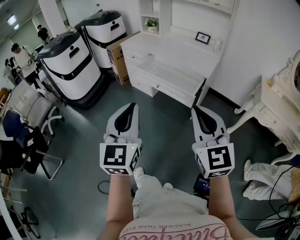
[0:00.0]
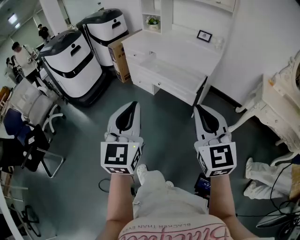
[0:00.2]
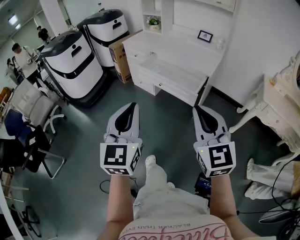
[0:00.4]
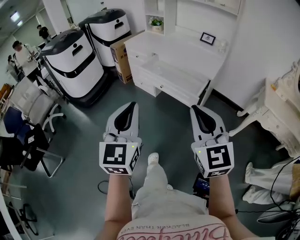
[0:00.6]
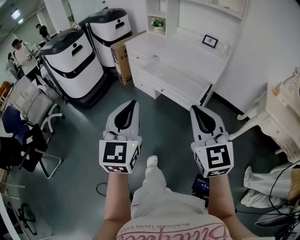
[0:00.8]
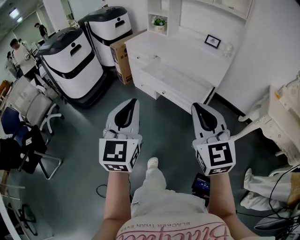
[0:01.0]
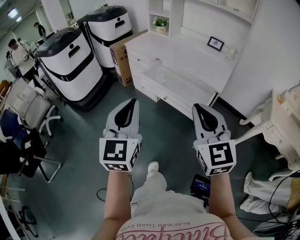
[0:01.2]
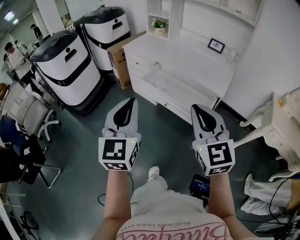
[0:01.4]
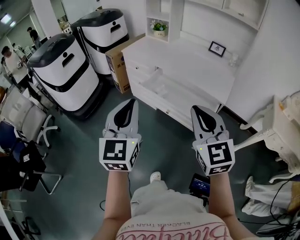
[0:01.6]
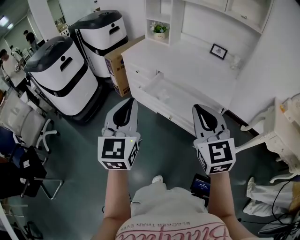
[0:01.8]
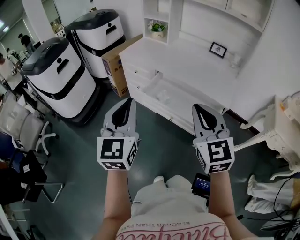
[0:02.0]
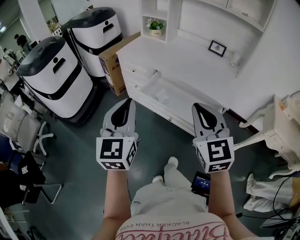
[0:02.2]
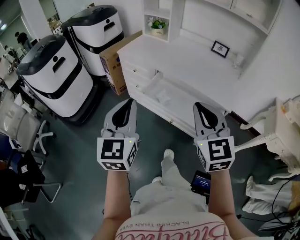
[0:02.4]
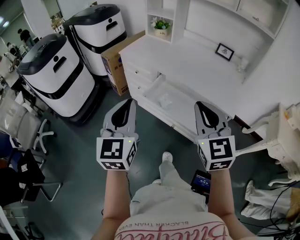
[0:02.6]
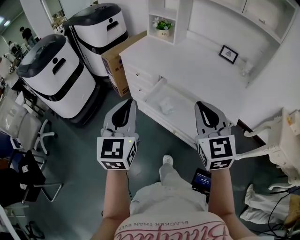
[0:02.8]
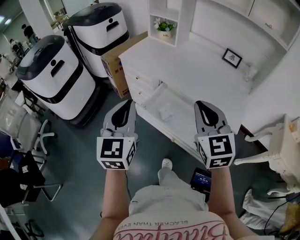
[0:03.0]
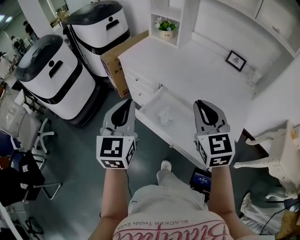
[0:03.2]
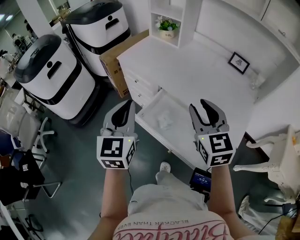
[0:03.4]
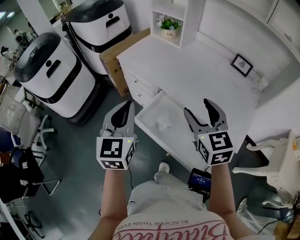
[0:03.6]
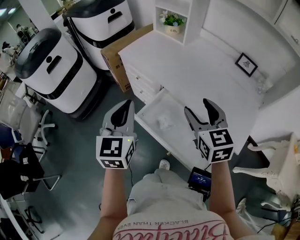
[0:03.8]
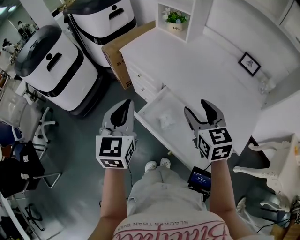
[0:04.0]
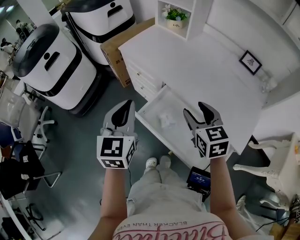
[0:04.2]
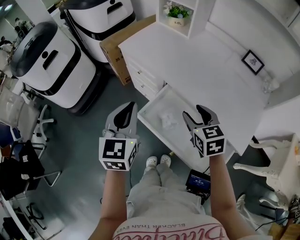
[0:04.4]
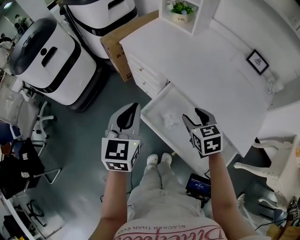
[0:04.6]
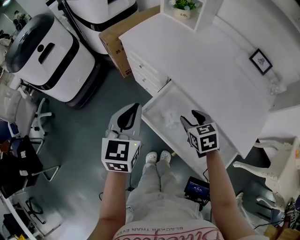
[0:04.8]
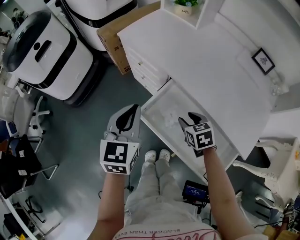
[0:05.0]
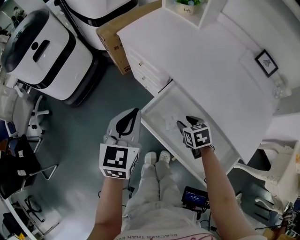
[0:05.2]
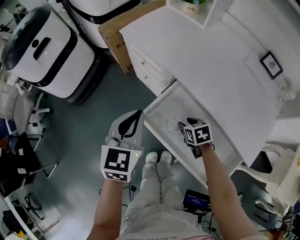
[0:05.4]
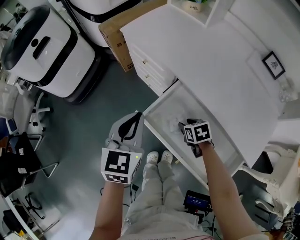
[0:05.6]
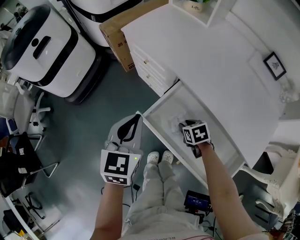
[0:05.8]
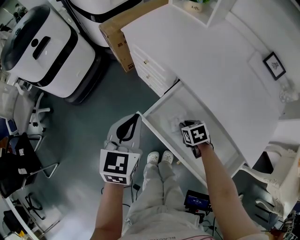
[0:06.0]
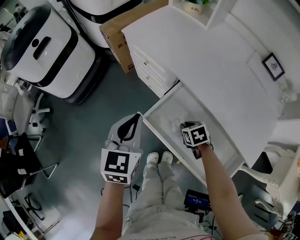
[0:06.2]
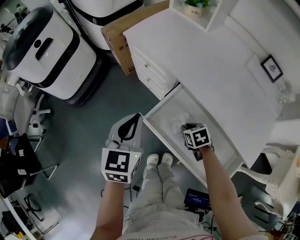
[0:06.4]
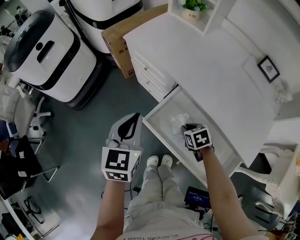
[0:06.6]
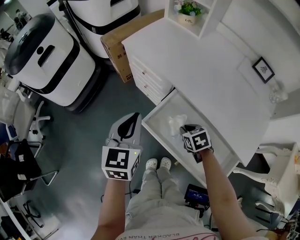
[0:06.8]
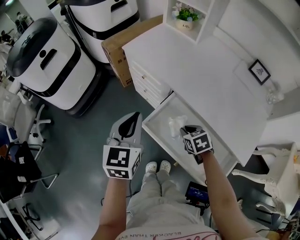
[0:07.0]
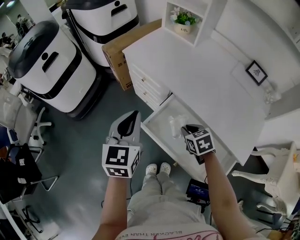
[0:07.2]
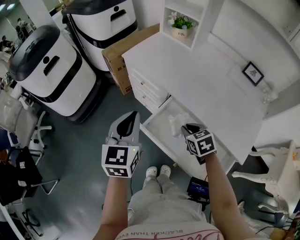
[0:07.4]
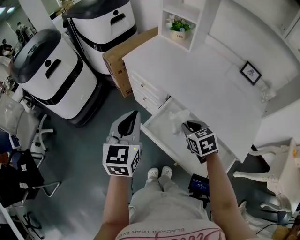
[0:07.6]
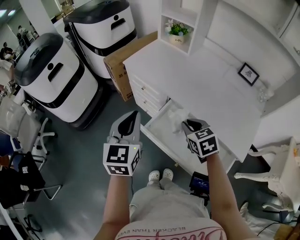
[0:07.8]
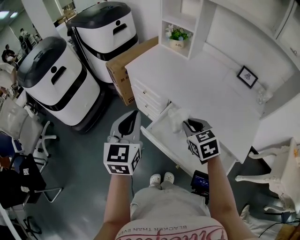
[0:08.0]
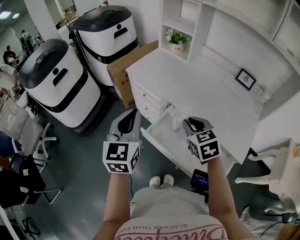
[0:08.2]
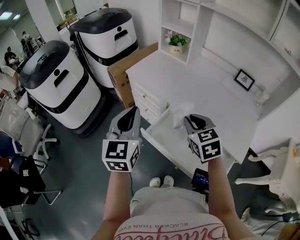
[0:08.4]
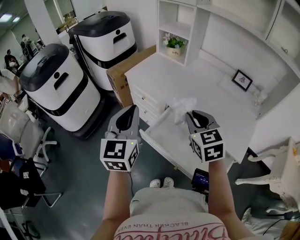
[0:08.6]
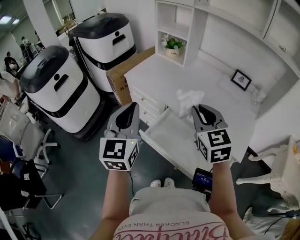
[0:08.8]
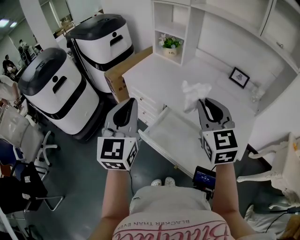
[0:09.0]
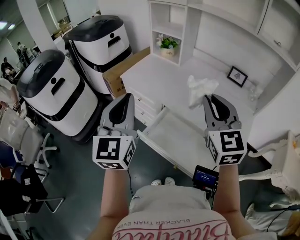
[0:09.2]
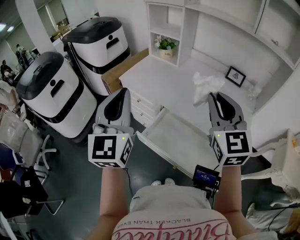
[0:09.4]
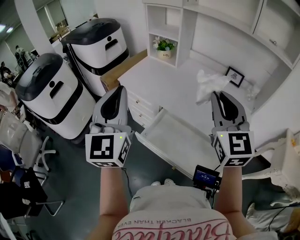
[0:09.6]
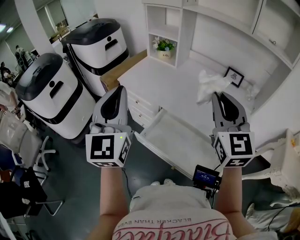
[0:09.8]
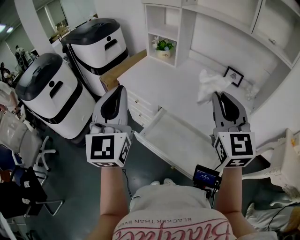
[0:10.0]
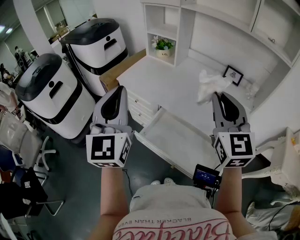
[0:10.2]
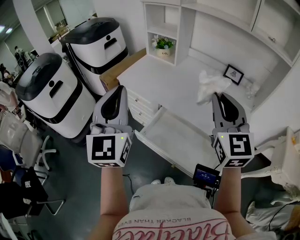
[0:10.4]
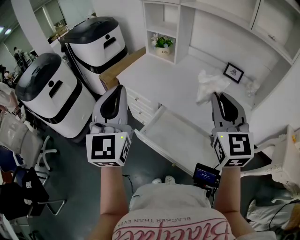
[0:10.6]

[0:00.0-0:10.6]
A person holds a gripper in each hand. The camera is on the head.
0:00.0 to 0:01.6: The two grippers go approximately 25 cm forward.
0:01.6 to 0:03.0: The two grippers go about 25 cm forward.
0:03.0 to 0:04.6: The left gripper travels forward and downward by approximately 15 cm. The right gripper travels downward and forward by about 25 cm, rotates approximately 30 degrees, and opens its fingers.
0:04.6 to 0:06.0: The left gripper heads downward, covering approximately 10 cm; the right gripper is displaced downward by roughly 20 cm, changes its angle by about 30 degrees, and closes its fingers.
0:06.0 to 0:07.6: The right gripper travels upward by approximately 20 cm, and turns by roughly 20 degrees. Meanwhile the left gripper shifts some 10 cm upward.
0:07.6 to 0:09.0: The left gripper heads upward, covering about 15 cm; the right gripper goes approximately 25 cm upward, and points its fingers roughly 40 degrees further upward.
0:09.0 to 0:10.6: The left gripper goes roughly 5 cm upward, while the right gripper shifts about 10 cm to the right and upward.

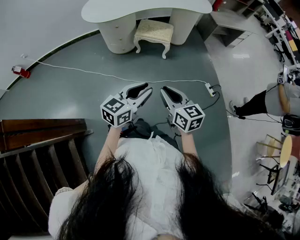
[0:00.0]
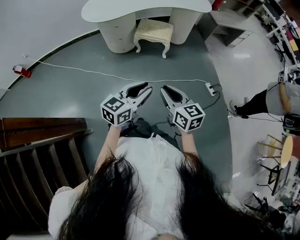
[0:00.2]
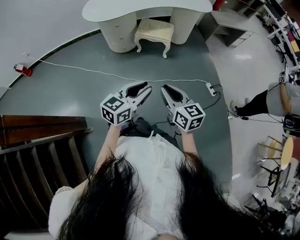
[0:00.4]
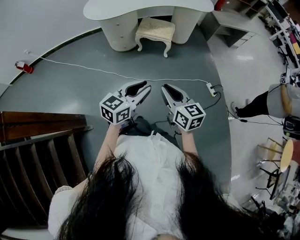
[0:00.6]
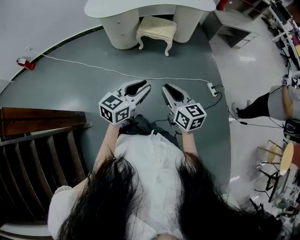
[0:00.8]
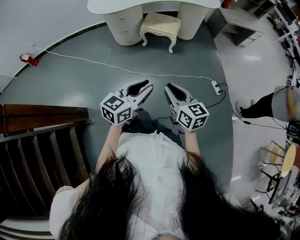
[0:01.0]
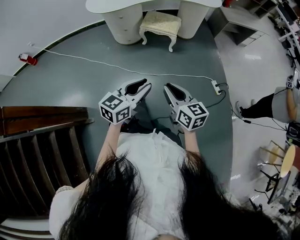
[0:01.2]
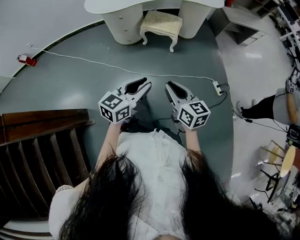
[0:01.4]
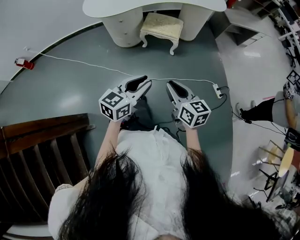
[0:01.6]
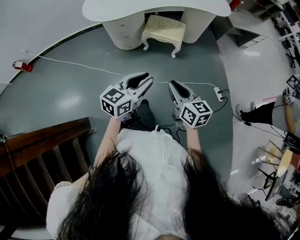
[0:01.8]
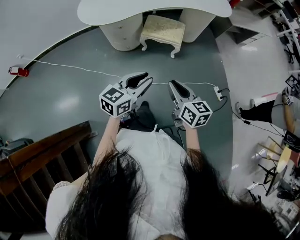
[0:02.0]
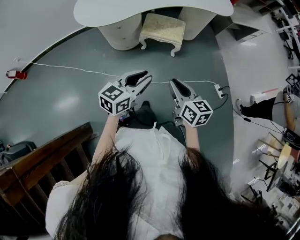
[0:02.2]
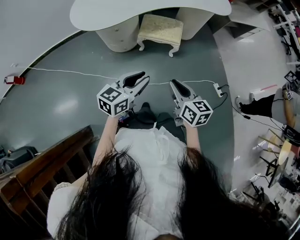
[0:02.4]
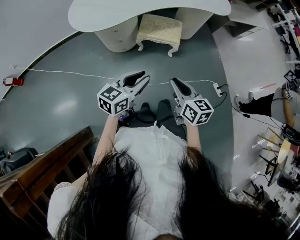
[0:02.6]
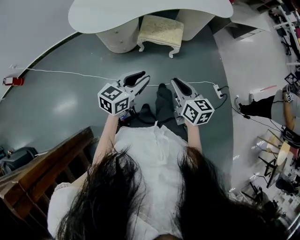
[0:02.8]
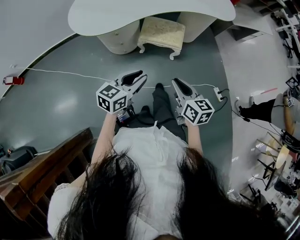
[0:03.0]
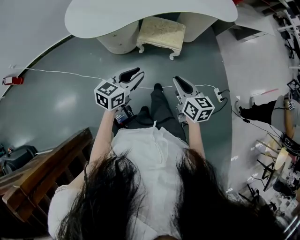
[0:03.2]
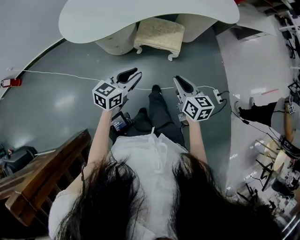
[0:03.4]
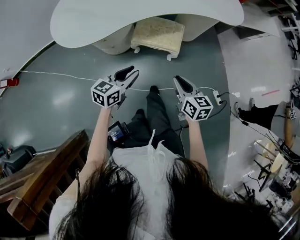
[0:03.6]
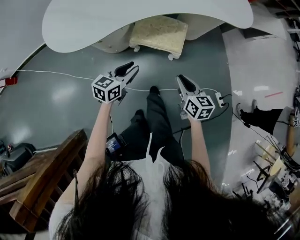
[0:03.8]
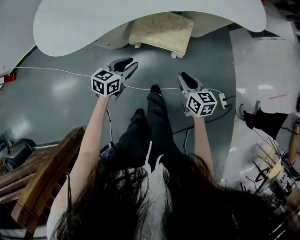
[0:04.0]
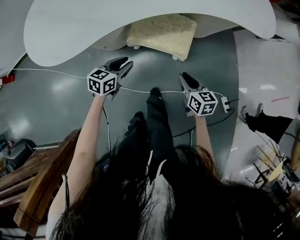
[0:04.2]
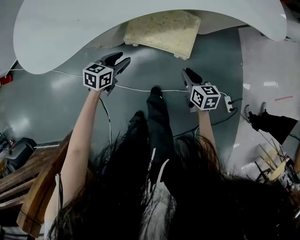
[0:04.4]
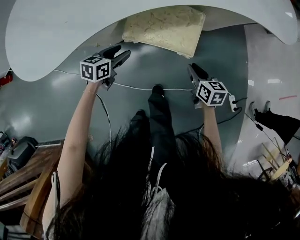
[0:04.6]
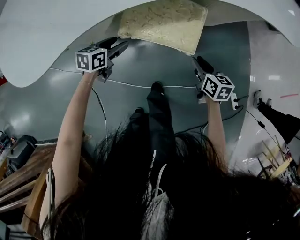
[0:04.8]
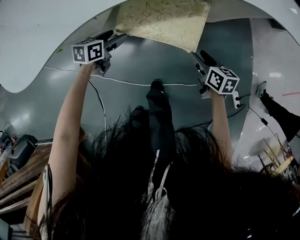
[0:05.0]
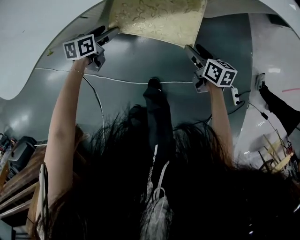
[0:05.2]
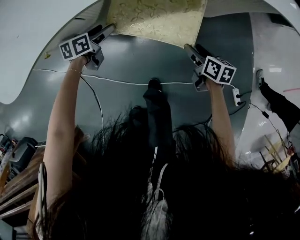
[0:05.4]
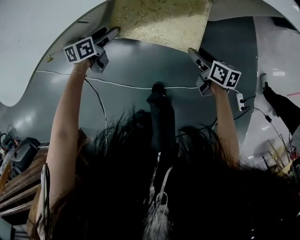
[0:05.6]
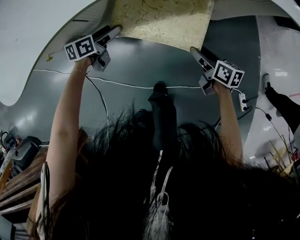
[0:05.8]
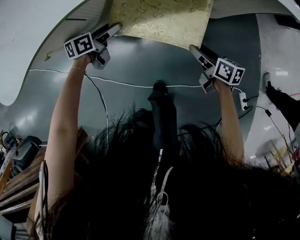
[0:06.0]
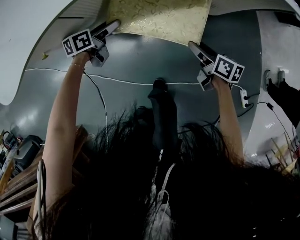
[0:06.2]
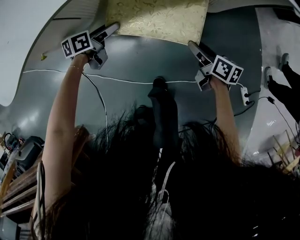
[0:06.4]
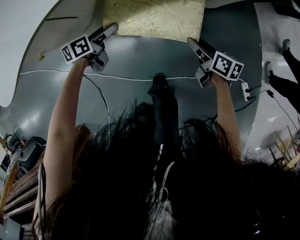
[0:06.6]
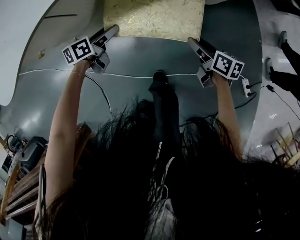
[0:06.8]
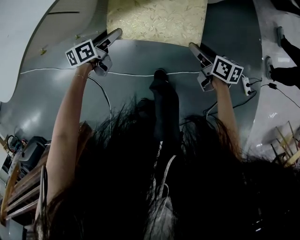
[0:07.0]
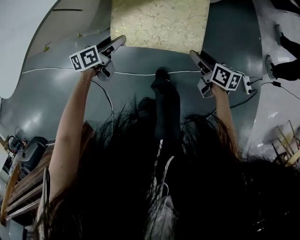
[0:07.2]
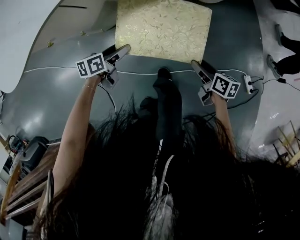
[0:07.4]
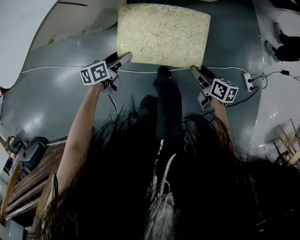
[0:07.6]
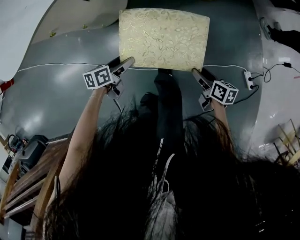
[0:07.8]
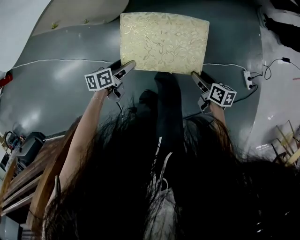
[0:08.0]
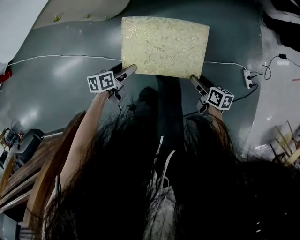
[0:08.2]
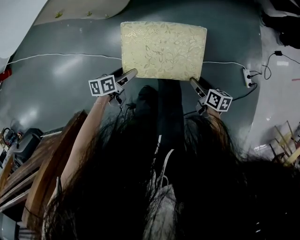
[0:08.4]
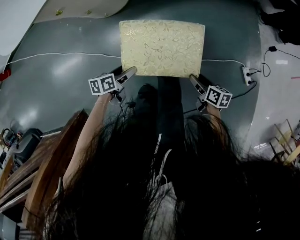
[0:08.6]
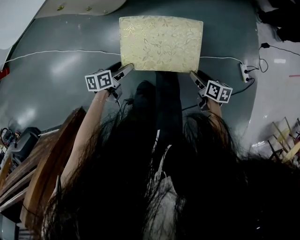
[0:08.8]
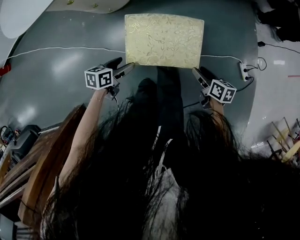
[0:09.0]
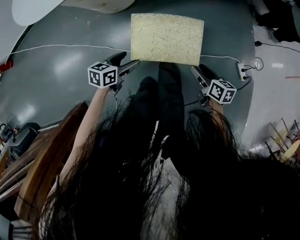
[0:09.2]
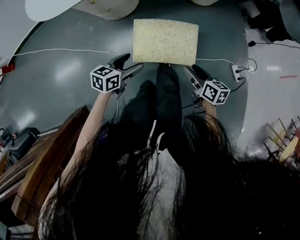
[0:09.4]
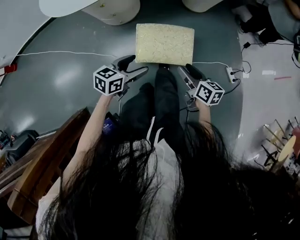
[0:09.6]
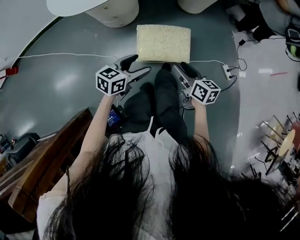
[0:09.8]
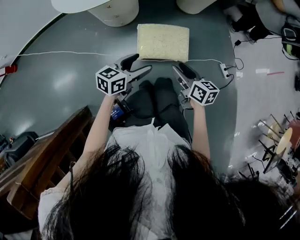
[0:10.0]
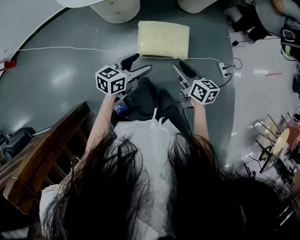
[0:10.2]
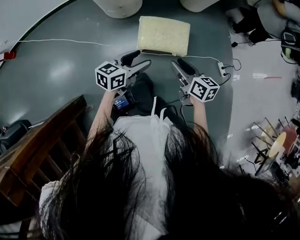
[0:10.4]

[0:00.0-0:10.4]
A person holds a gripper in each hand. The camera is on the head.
0:00.0 to 0:01.4: The right gripper shifts by about 5 cm.
0:01.4 to 0:03.0: The right gripper heads forward, covering some 25 cm, while the left gripper shifts some 30 cm forward and to the left.
0:03.0 to 0:04.4: Both grippers move downward and forward, approximately 50 cm. The right gripper swivels roughly 20 degrees, while the left gripper swivels approximately 20 degrees.
0:04.4 to 0:06.0: The grippers both shift downward and forward by some 15 cm. The left gripper swivels roughly 30 degrees, and opens up; the right gripper rotates approximately 20 degrees, and opens its fingers.
0:06.0 to 0:07.4: The grippers move only a little.
0:07.4 to 0:09.0: Both grippers move upward, roughly 5 cm.
0:09.0 to 0:10.4: The left gripper is displaced upward by roughly 35 cm, and swivels about 30 degrees; the right gripper is displaced upward and to the left by some 40 cm, and turns by roughly 20 degrees.

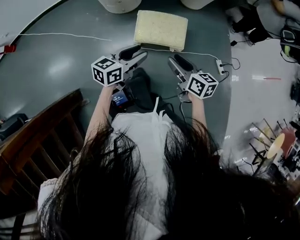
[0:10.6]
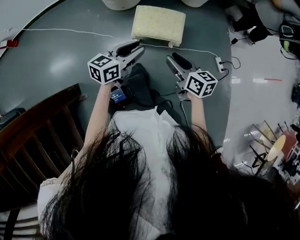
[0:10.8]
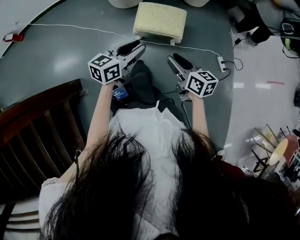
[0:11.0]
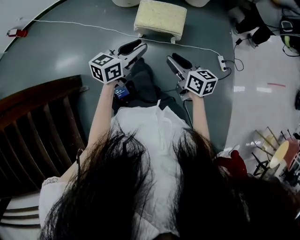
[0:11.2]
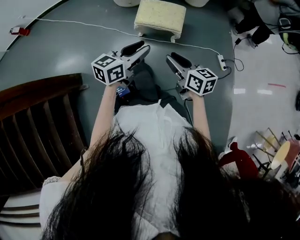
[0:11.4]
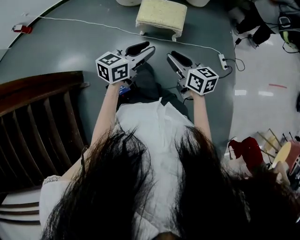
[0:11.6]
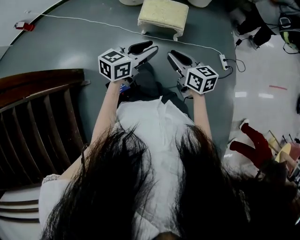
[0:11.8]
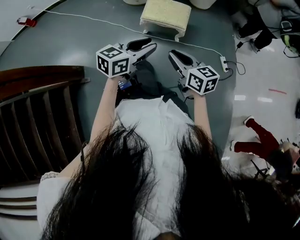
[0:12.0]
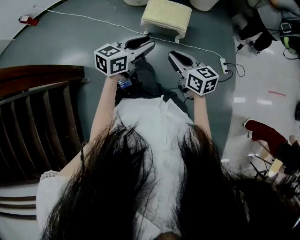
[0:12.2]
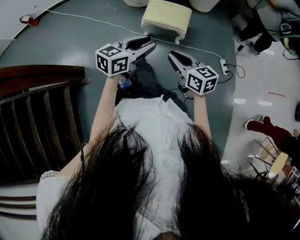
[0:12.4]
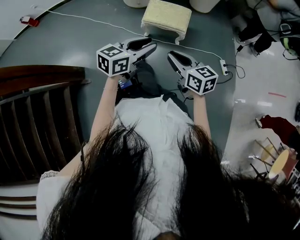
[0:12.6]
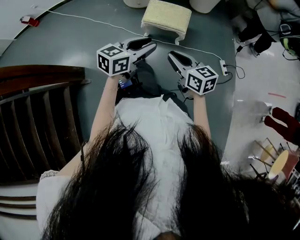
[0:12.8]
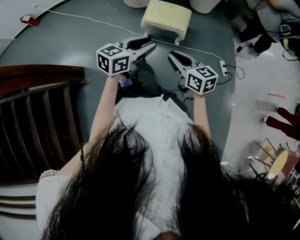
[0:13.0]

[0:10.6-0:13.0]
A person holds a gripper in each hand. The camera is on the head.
0:10.6 to 0:11.8: The right gripper moves backward, approximately 20 cm, and closes, while the left gripper is displaced backward and to the right by roughly 25 cm.
0:11.8 to 0:13.0: The grippers make only small movements.
